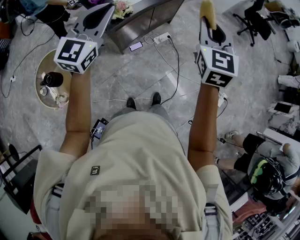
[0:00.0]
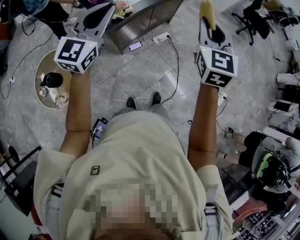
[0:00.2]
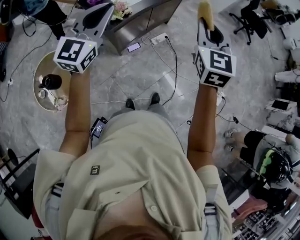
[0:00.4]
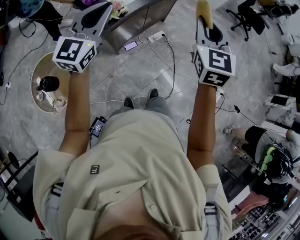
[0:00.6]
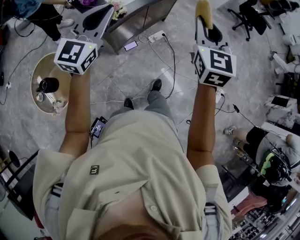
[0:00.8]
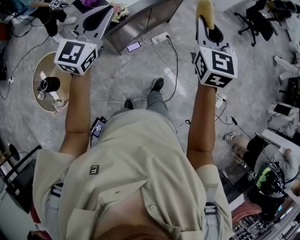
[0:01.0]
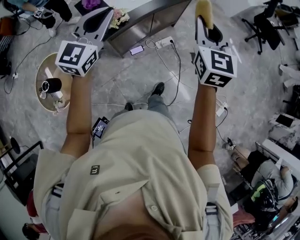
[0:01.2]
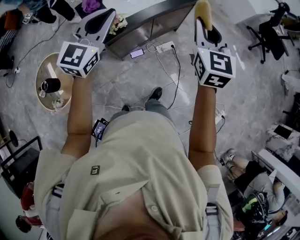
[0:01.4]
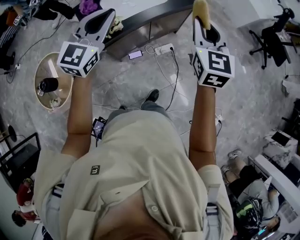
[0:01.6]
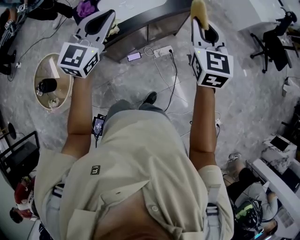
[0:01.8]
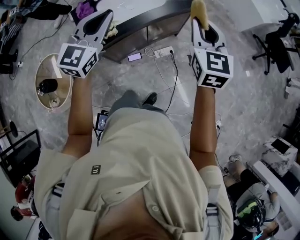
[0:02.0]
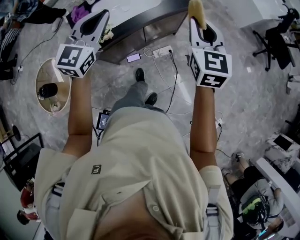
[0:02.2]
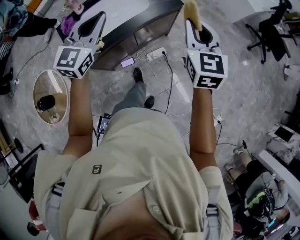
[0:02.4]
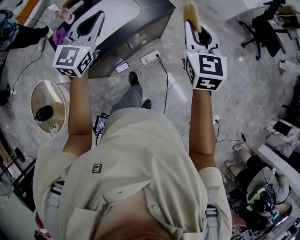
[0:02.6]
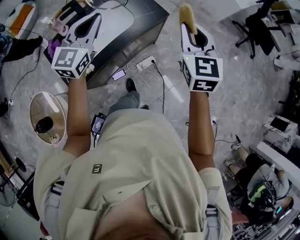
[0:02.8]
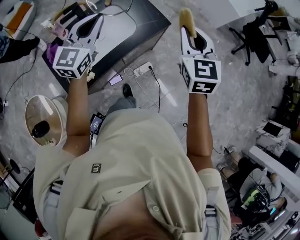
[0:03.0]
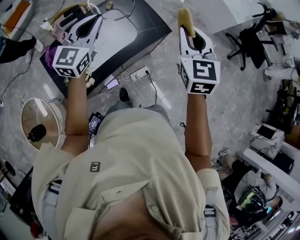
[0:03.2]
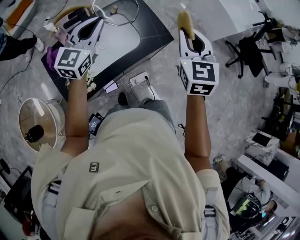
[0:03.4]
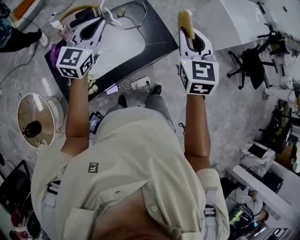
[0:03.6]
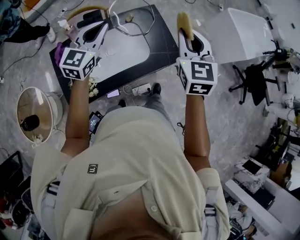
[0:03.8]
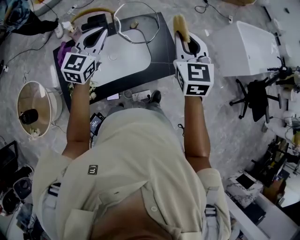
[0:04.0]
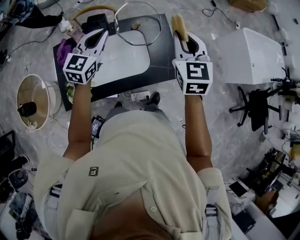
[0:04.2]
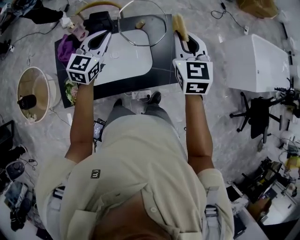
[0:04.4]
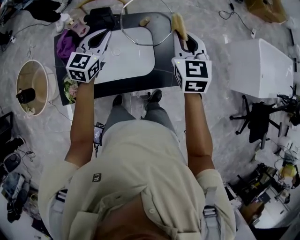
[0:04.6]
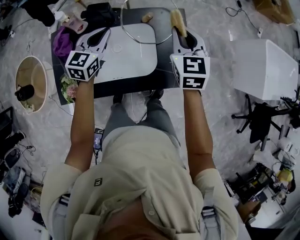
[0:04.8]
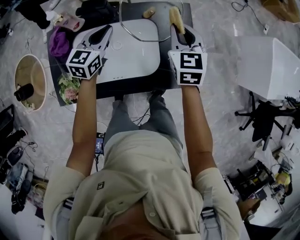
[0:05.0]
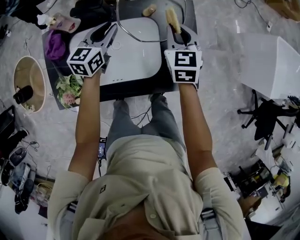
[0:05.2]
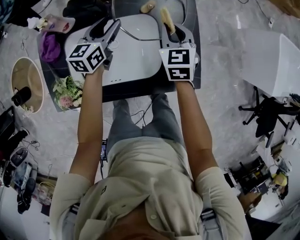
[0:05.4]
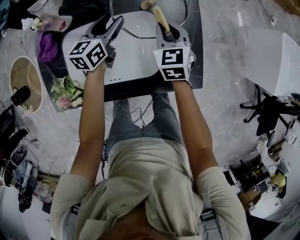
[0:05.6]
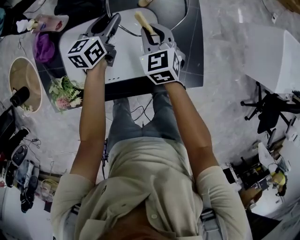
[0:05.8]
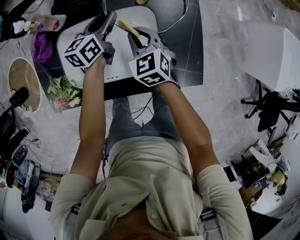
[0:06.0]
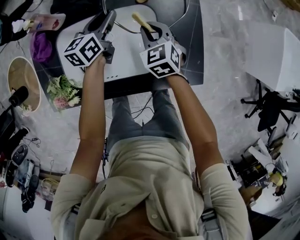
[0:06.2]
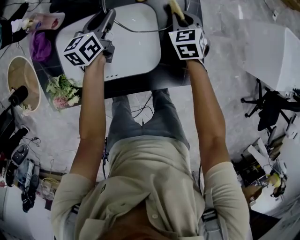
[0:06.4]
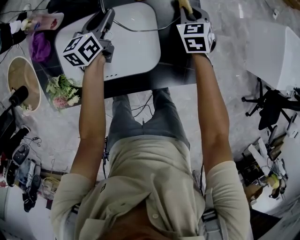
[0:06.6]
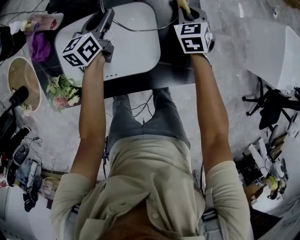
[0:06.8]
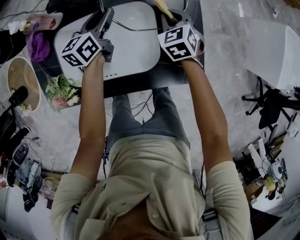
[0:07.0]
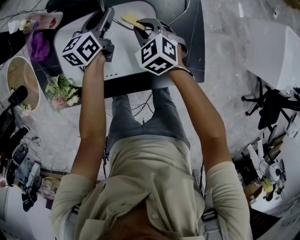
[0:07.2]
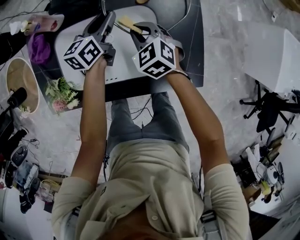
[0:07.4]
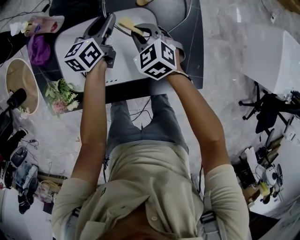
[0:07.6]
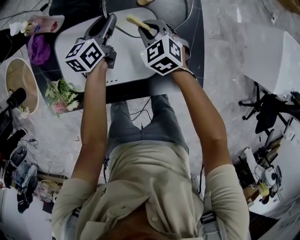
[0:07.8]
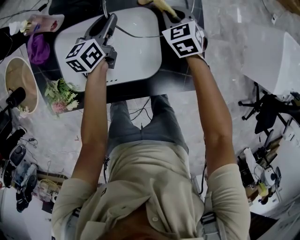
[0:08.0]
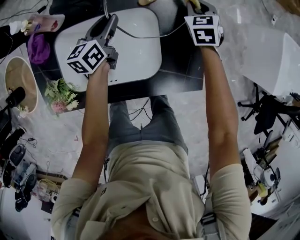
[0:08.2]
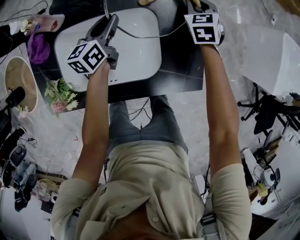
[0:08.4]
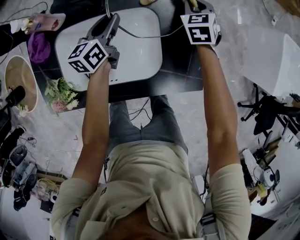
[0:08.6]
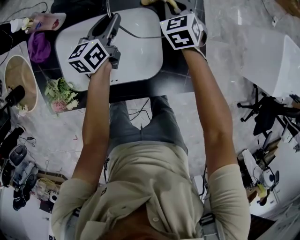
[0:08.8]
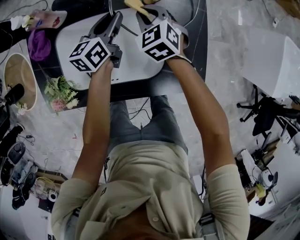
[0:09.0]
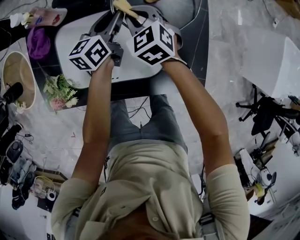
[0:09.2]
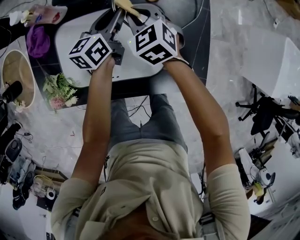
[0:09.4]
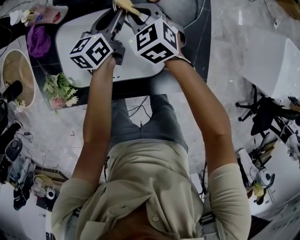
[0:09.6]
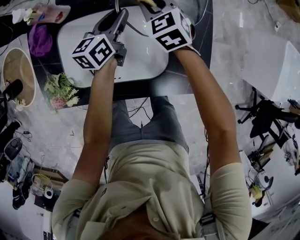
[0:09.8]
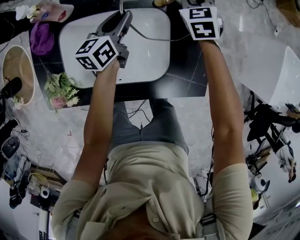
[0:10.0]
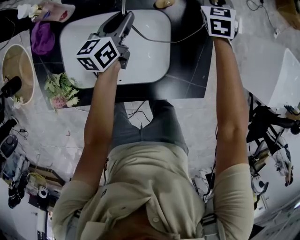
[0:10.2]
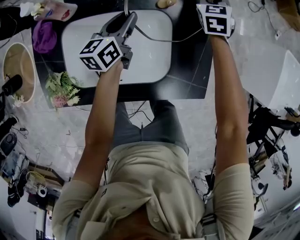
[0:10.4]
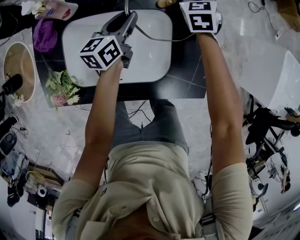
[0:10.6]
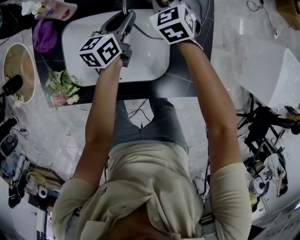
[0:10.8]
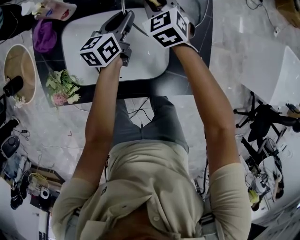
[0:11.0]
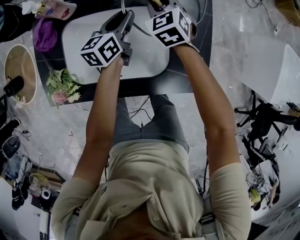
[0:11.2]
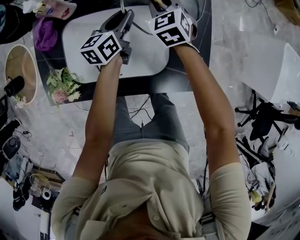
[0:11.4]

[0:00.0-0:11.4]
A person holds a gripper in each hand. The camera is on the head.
0:00.0 to 0:01.4: Both grippers move forward, about 20 cm.
0:01.4 to 0:02.8: The left gripper heads forward, covering about 30 cm. Meanwhile the right gripper travels forward and to the right by roughly 25 cm.
0:02.8 to 0:04.2: The right gripper shifts by some 35 cm, and swivels approximately 30 degrees; the left gripper changes place by about 25 cm, and turns by some 30 degrees.
0:04.2 to 0:05.6: The left gripper moves downward and forward, roughly 30 cm, rotates about 30 degrees, and opens its fingers. The right gripper is displaced downward by approximately 35 cm, and rotates about 20 degrees.
0:05.6 to 0:07.2: The right gripper moves left and right over roughly 20 cm, changing direction 2 times, and rotates some 30 degrees. The left gripper closes.
0:07.2 to 0:08.6: The right gripper goes about 20 cm to the right and forward, and rotates about 30 degrees.
0:08.6 to 0:10.0: The right gripper goes to the left and returns, about 20 cm each way.
0:10.0 to 0:11.4: The right gripper shifts about 10 cm to the left and backward.

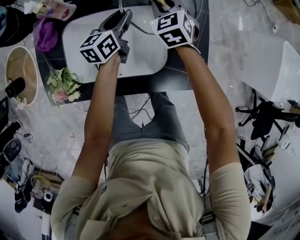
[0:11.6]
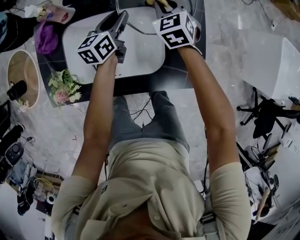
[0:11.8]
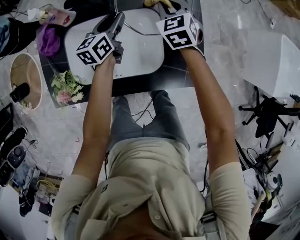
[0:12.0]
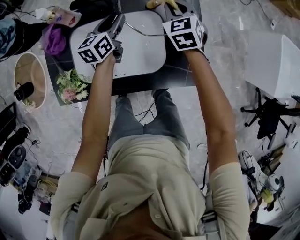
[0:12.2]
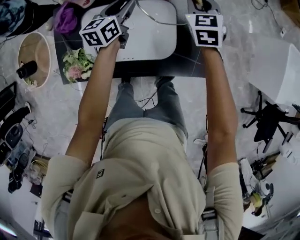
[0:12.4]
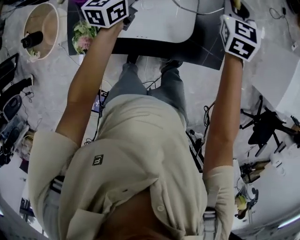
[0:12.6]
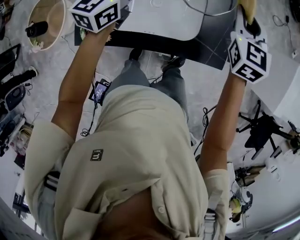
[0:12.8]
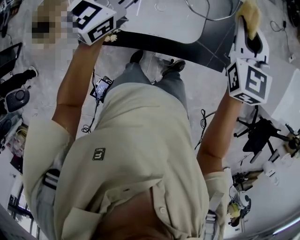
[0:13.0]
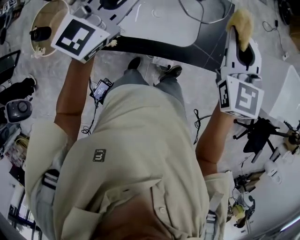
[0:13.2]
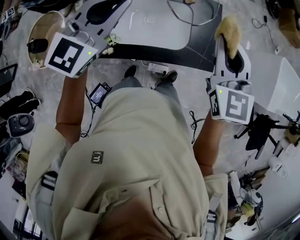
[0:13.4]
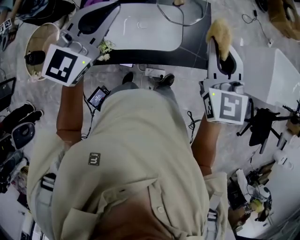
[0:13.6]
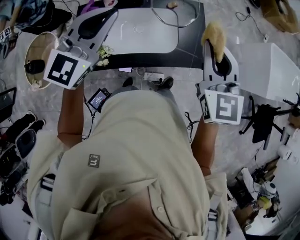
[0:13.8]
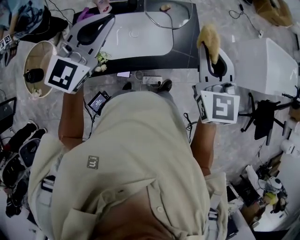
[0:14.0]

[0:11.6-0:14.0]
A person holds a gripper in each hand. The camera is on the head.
0:11.6 to 0:12.8: The left gripper is displaced upward and backward by approximately 20 cm, turns by about 30 degrees, and closes. Meanwhile the right gripper moves upward, backward and to the right, about 25 cm, and swivels some 20 degrees.
0:12.8 to 0:14.0: The right gripper travels backward and upward by about 25 cm, while the left gripper shifts approximately 25 cm upward and backward, and turns by approximately 30 degrees.

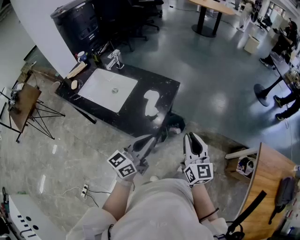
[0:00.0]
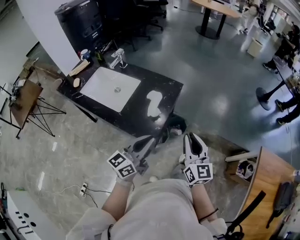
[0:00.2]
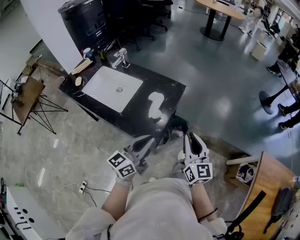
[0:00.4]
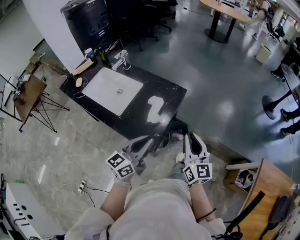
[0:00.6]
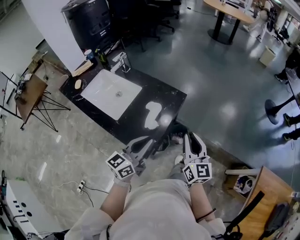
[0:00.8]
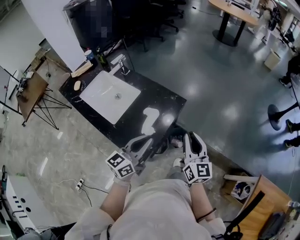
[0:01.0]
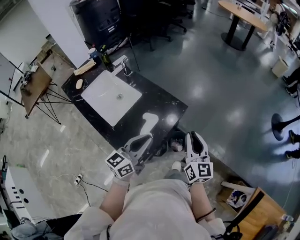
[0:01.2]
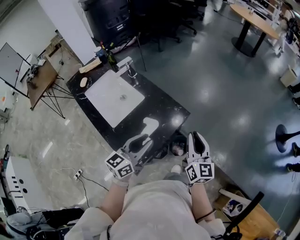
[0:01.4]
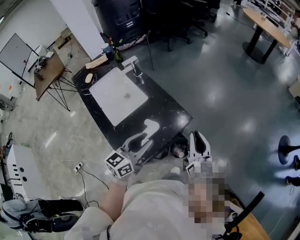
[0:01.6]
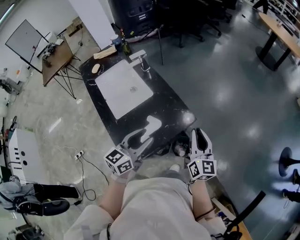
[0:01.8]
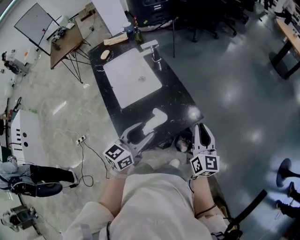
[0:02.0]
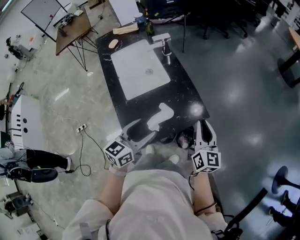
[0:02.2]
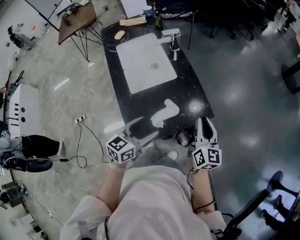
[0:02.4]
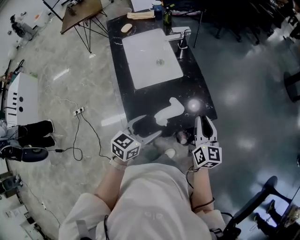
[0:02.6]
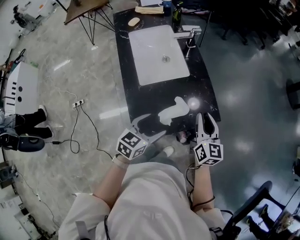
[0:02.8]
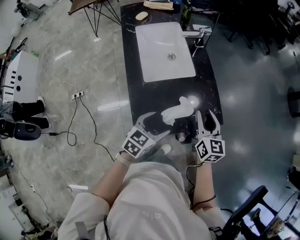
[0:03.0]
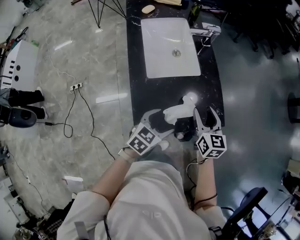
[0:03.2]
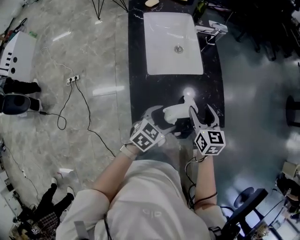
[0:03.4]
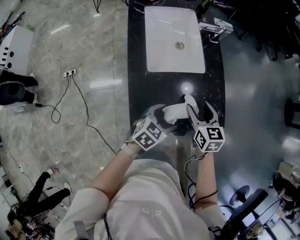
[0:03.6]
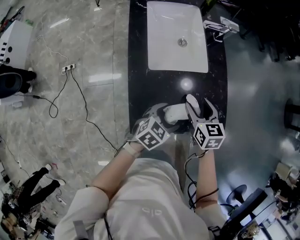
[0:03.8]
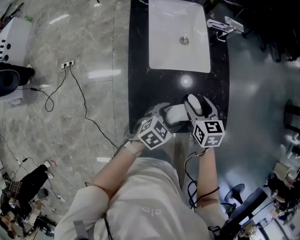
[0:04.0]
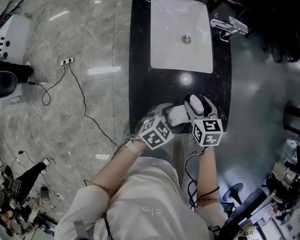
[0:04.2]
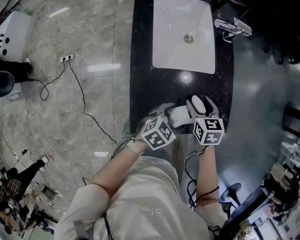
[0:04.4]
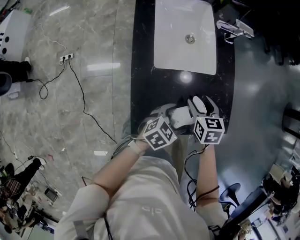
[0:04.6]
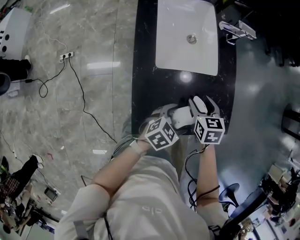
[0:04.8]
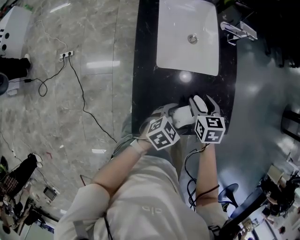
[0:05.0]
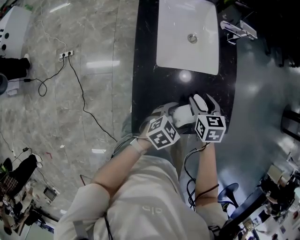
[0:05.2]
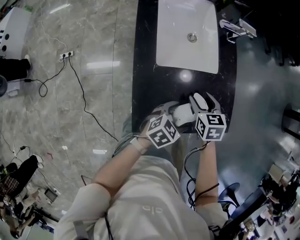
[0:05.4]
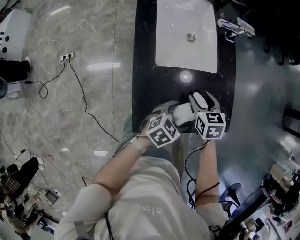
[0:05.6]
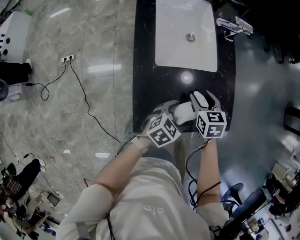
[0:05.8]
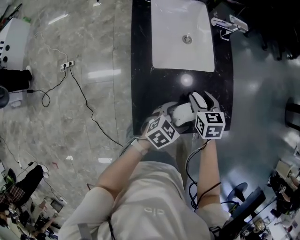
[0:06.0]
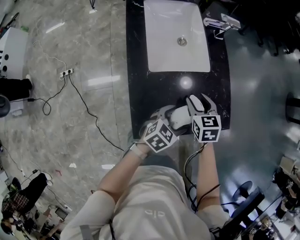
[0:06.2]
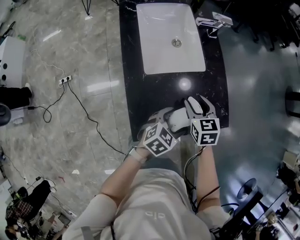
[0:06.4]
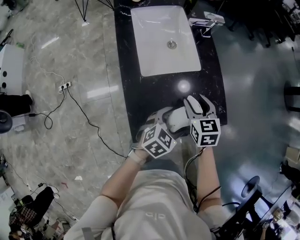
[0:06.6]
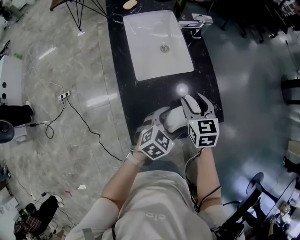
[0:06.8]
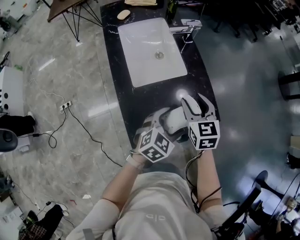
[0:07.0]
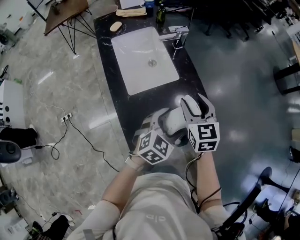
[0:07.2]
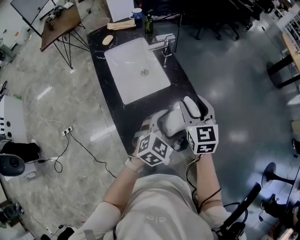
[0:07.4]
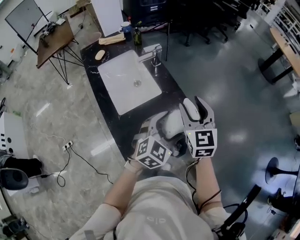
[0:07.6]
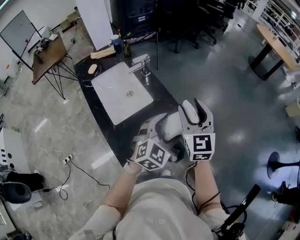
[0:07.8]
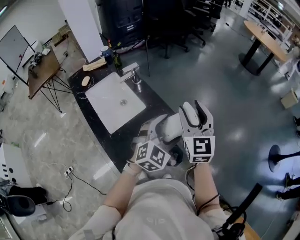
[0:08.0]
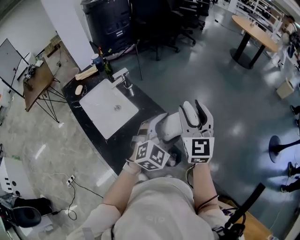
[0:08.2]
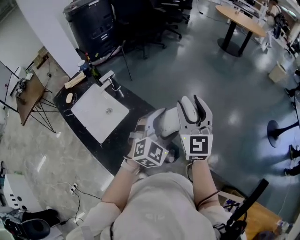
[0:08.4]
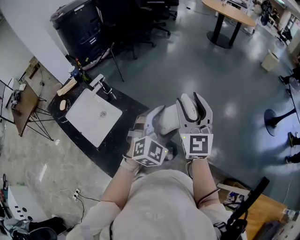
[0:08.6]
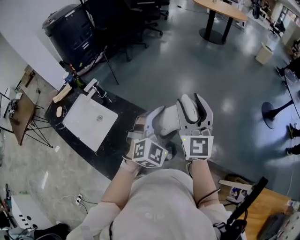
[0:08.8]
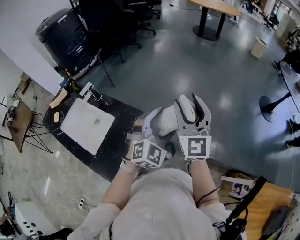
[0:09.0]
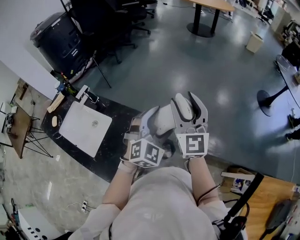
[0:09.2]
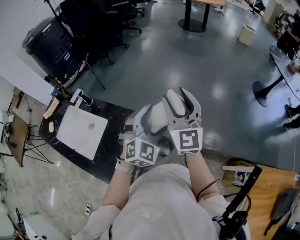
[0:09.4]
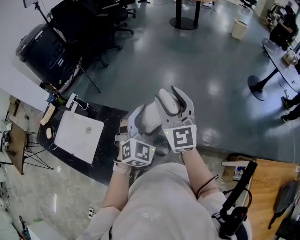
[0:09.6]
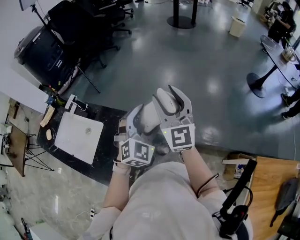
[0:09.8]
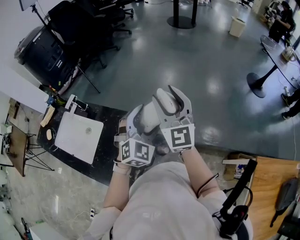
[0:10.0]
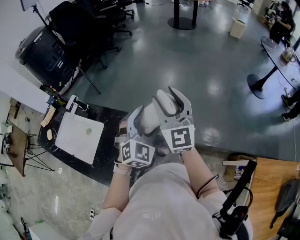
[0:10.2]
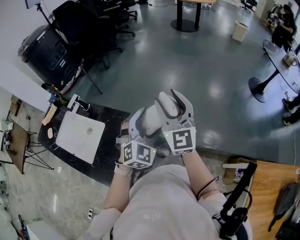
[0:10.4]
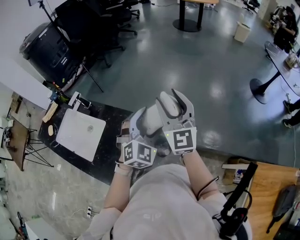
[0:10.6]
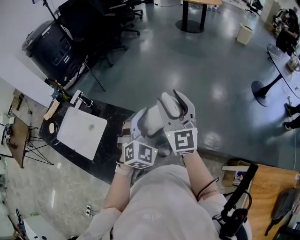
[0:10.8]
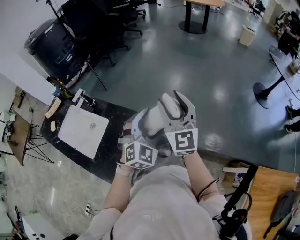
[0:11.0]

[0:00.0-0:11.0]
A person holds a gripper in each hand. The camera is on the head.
0:00.0 to 0:01.6: Both grippers move forward, roughly 30 cm. The left gripper swivels roughly 30 degrees.
0:01.6 to 0:03.2: The right gripper ends up some 25 cm from where it was, turns by approximately 40 degrees, and opens its fingers. The left gripper heads downward, covering some 15 cm, angles its fingers downward, by about 30 degrees, and opens.
0:03.2 to 0:04.8: The left gripper heads downward, covering some 5 cm. The right gripper goes some 15 cm downward and to the left, and rotates roughly 30 degrees.
0:04.8 to 0:06.2: The grippers make only small movements.
0:06.2 to 0:07.8: Both grippers move upward and to the right, some 30 cm. The left gripper rotates around the line of its fingers by roughly 40 degrees, clockwise from behind. Meanwhile the right gripper tips its fingers upward by roughly 40 degrees.
0:07.8 to 0:09.4: The left gripper changes place by about 20 cm, and rotates about 30 degrees. The right gripper shifts by about 20 cm, and changes its angle by about 30 degrees.
0:09.4 to 0:11.0: The grippers stay close to where they were, moving slightly.
